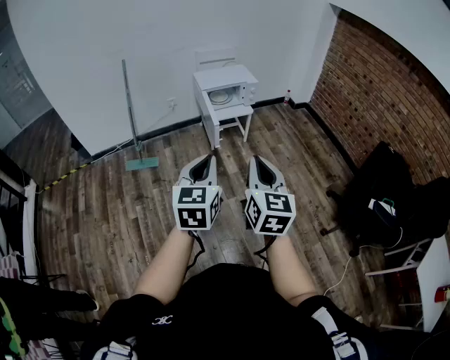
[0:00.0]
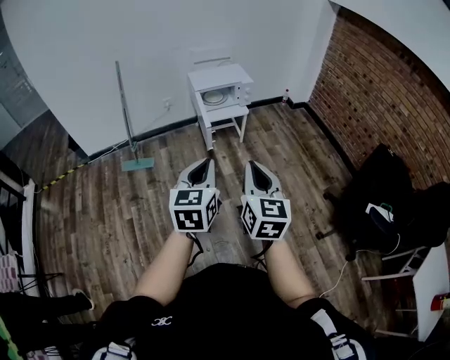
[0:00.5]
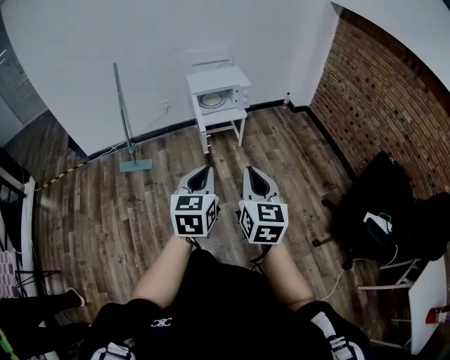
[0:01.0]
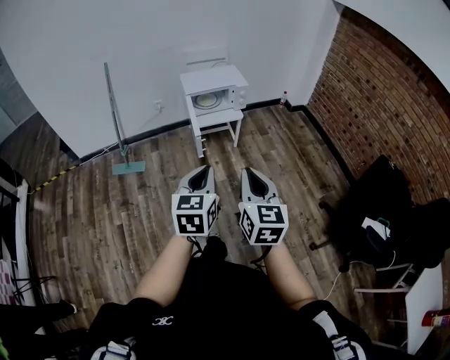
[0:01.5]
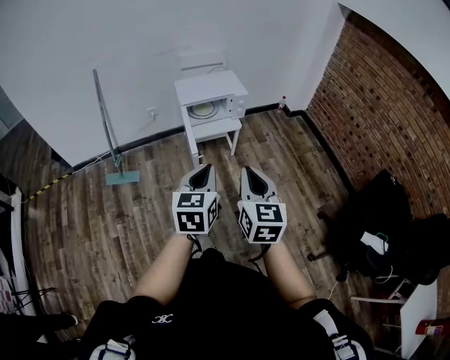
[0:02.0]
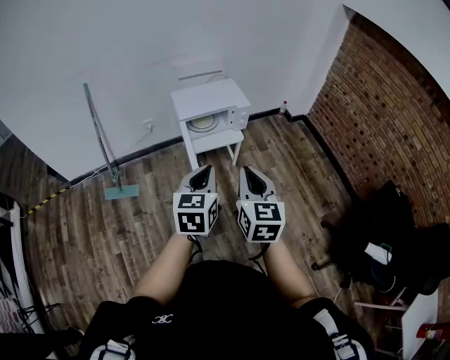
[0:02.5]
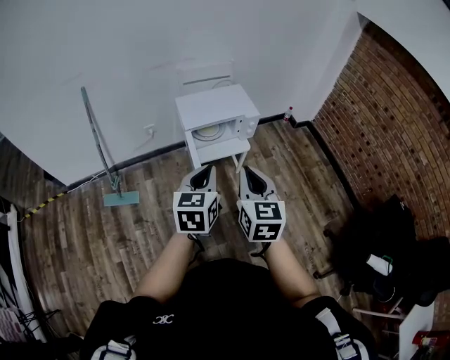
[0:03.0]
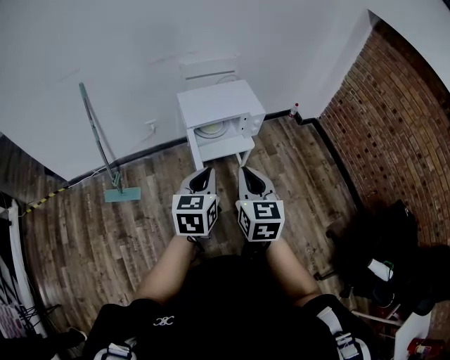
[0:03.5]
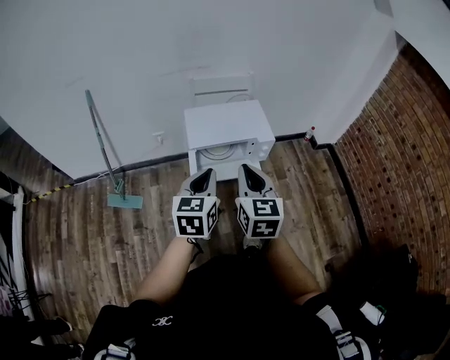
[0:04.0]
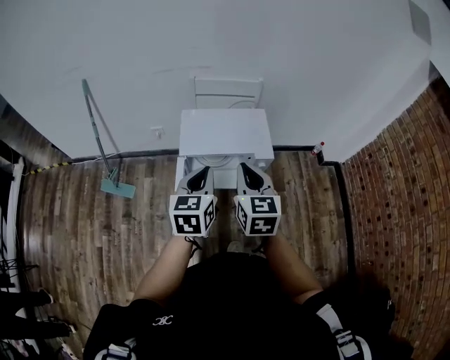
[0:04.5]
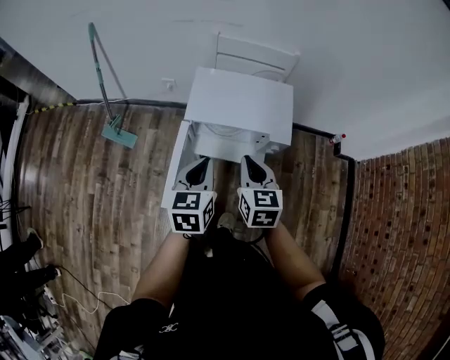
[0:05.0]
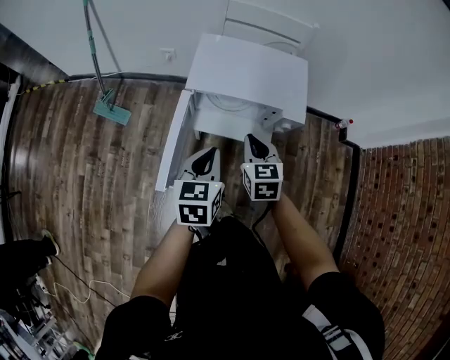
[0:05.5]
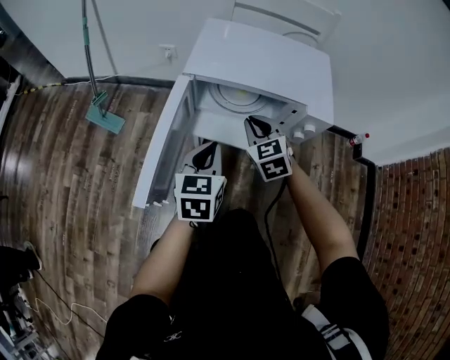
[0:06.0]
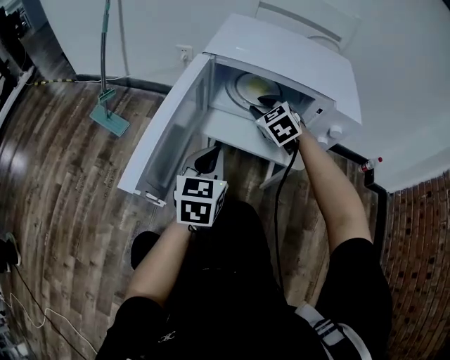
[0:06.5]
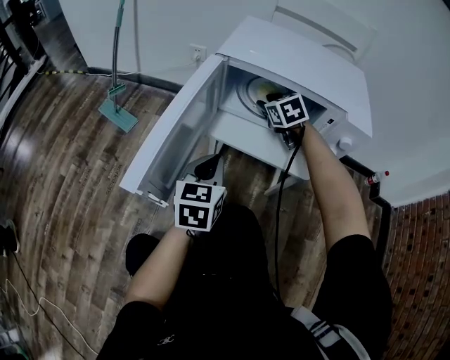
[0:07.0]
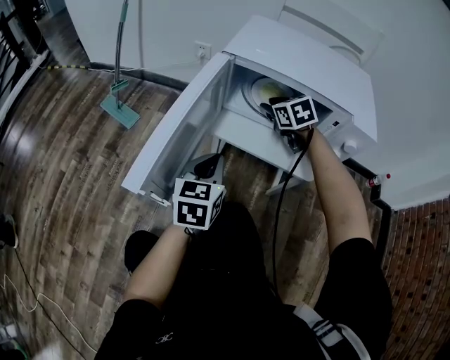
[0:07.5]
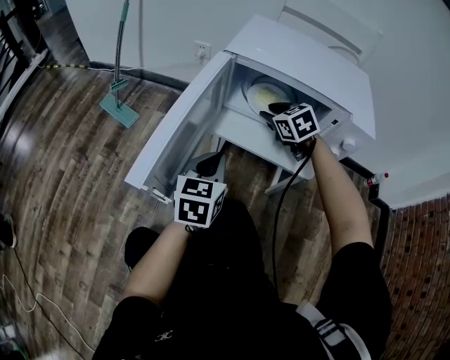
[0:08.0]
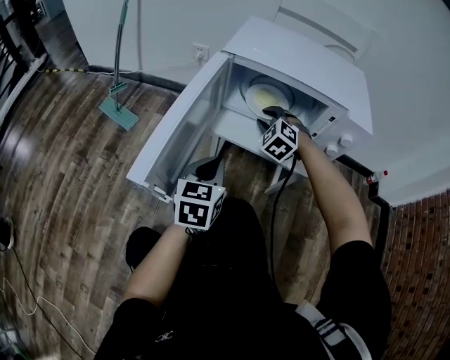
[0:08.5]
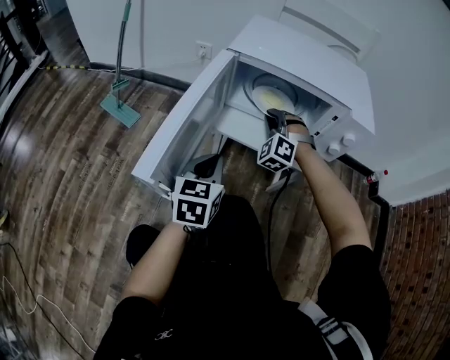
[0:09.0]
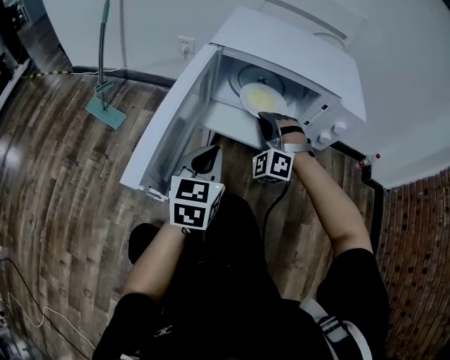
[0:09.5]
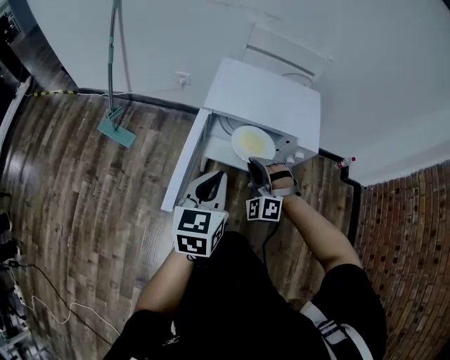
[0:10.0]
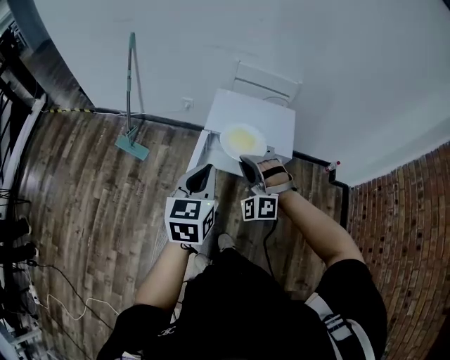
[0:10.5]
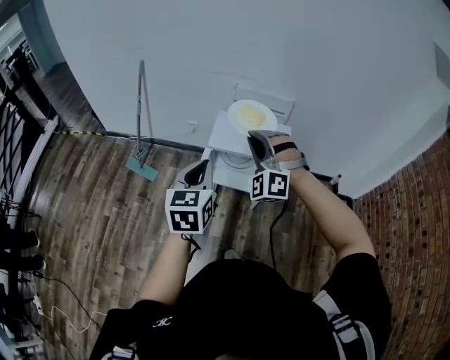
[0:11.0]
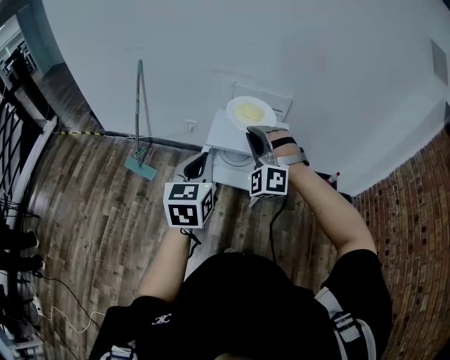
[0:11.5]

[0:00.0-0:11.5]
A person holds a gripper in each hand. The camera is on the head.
0:00.0 to 0:02.0: The grippers both shift forward by some 25 cm.
0:02.0 to 0:04.0: Both grippers travel together forward, some 35 cm.
0:04.0 to 0:06.0: Both grippers move downward, about 40 cm. The right gripper swivels some 50 degrees; the left gripper changes its angle by about 20 degrees.
0:06.0 to 0:07.5: The right gripper heads forward and downward, covering about 15 cm, and opens its fingers, while the left gripper is displaced downward by some 10 cm.
0:07.5 to 0:09.5: The right gripper shifts approximately 10 cm backward, rotates around the line of its fingers by roughly 60 degrees, counterclockwise from behind, and closes its fingers.
0:09.5 to 0:11.5: Both grippers move upward, some 50 cm.

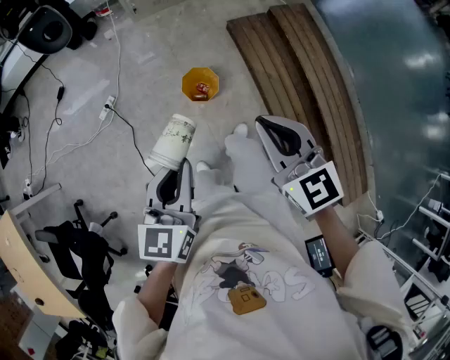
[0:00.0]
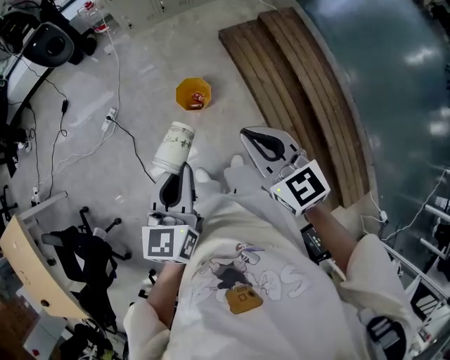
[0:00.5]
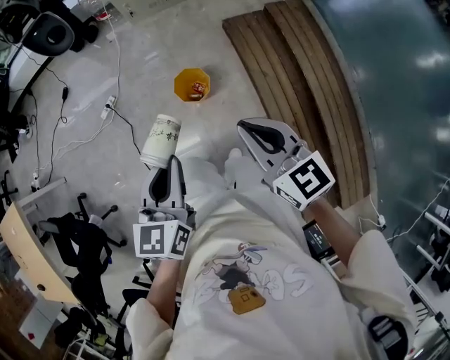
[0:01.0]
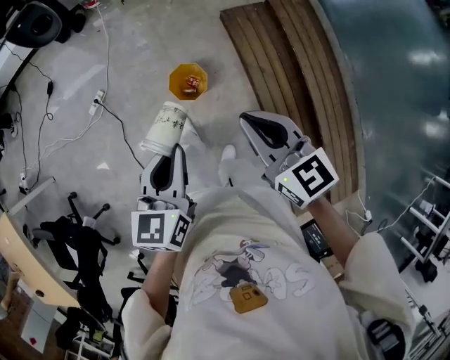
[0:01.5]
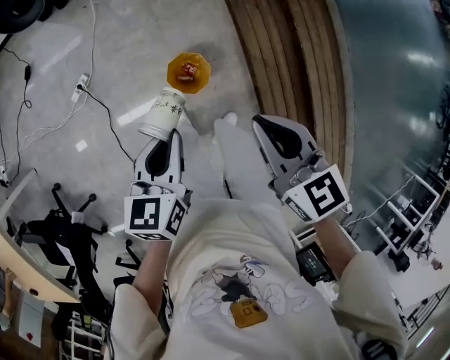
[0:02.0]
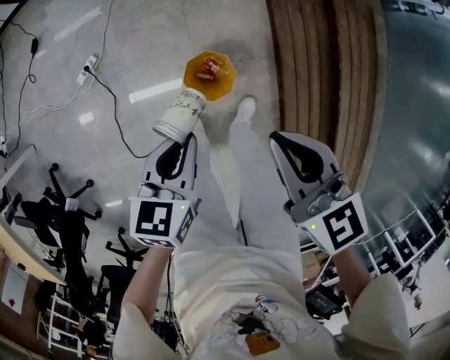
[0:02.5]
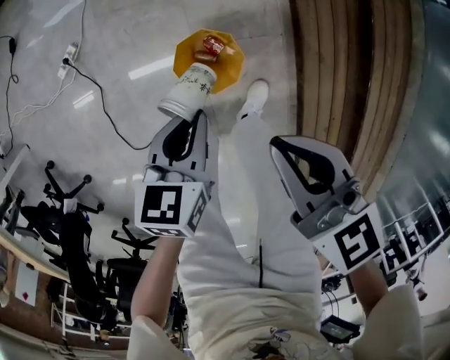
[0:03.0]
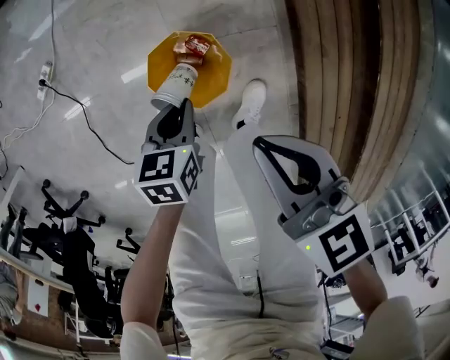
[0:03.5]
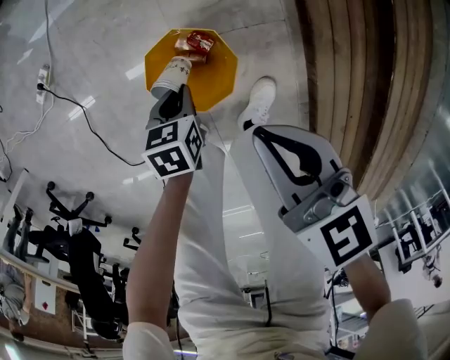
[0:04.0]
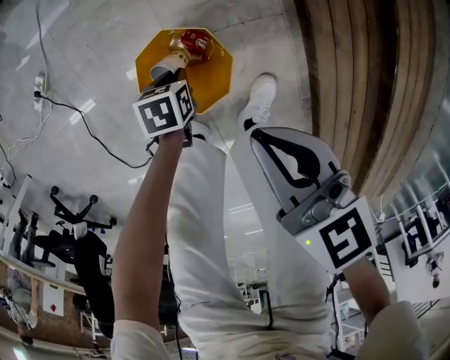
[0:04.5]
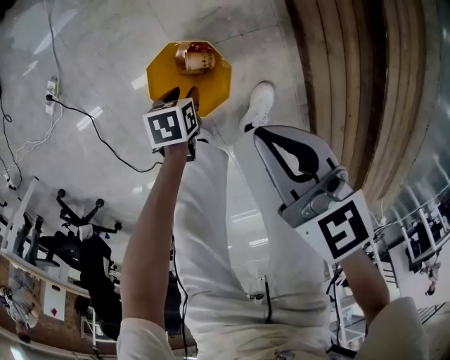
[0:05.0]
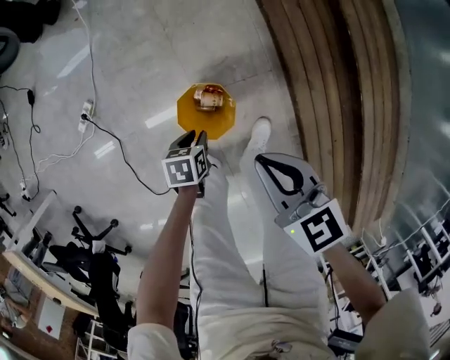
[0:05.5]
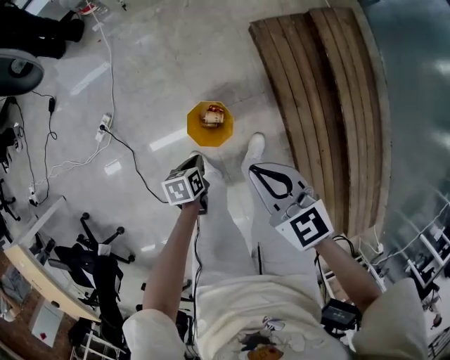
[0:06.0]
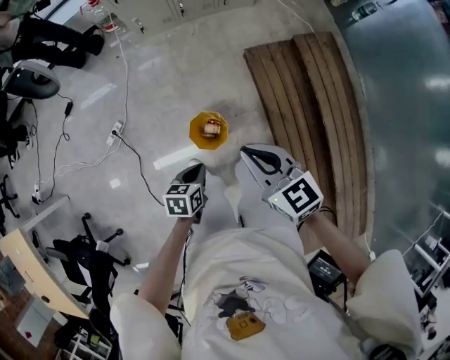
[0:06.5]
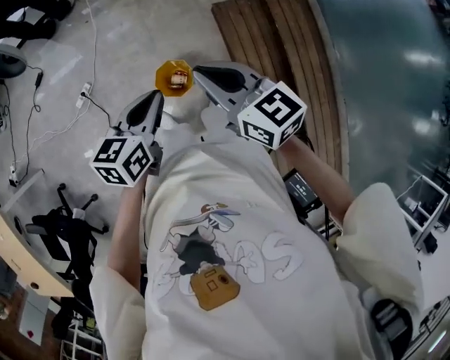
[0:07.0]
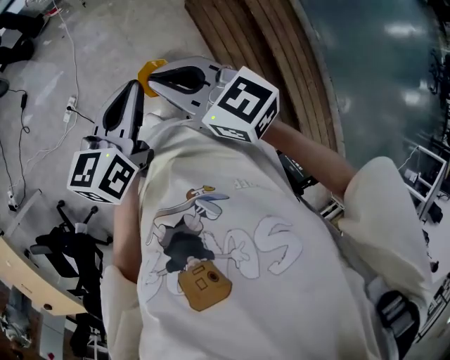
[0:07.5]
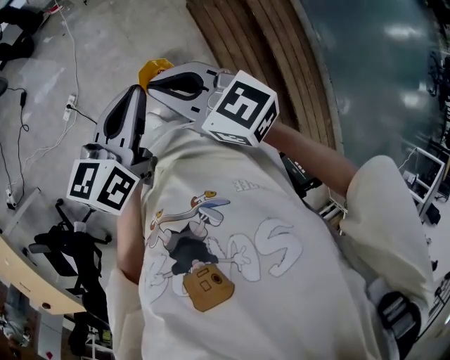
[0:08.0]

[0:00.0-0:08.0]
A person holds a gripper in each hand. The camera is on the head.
0:00.0 to 0:02.0: Both grippers move forward and downward, some 25 cm. The left gripper swivels approximately 20 degrees.
0:02.0 to 0:04.0: Both grippers move downward, approximately 60 cm. The left gripper points its fingers about 30 degrees further downward.
0:04.0 to 0:06.0: The grippers both shift upward by approximately 30 cm. The left gripper opens and closes again.
0:06.0 to 0:08.0: The left gripper moves upward, about 50 cm, and angles its fingers upward, by approximately 50 degrees; the right gripper goes some 25 cm upward, and turns by some 20 degrees.

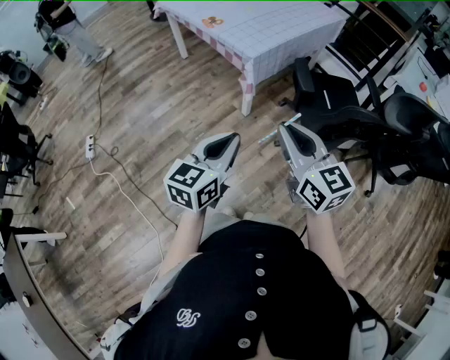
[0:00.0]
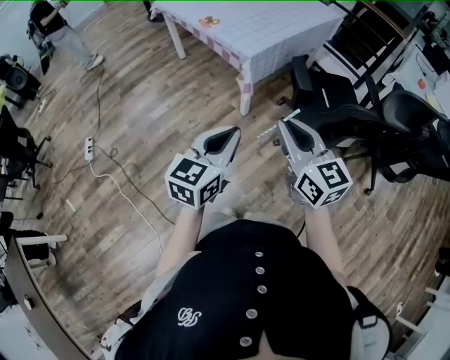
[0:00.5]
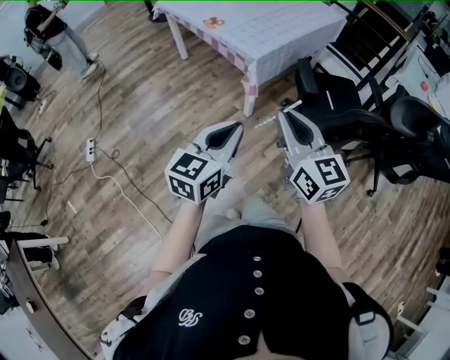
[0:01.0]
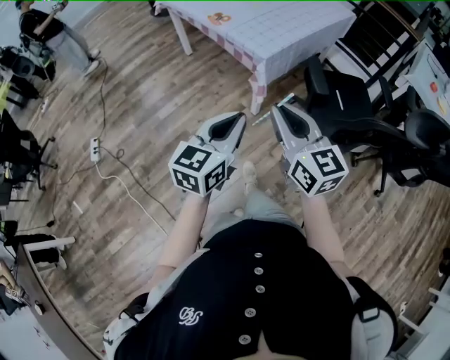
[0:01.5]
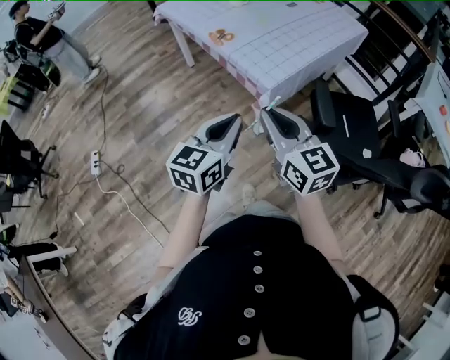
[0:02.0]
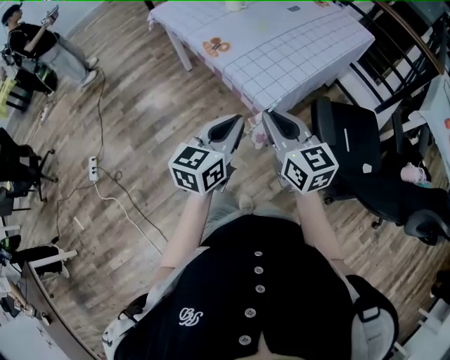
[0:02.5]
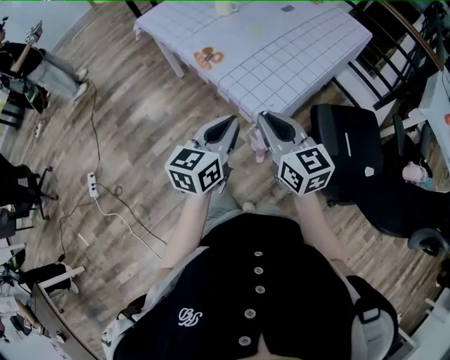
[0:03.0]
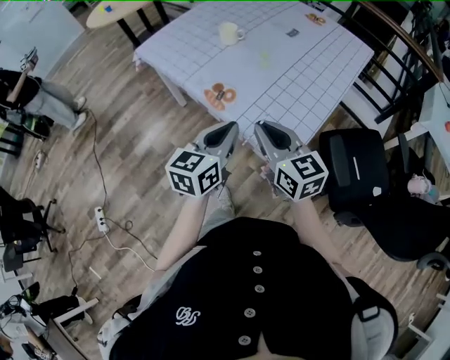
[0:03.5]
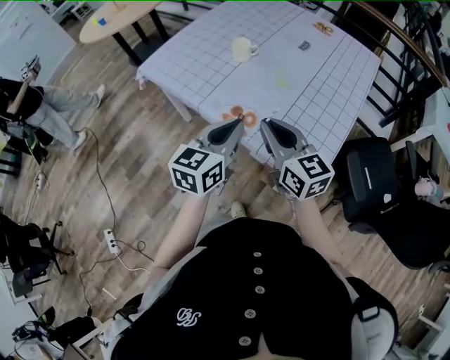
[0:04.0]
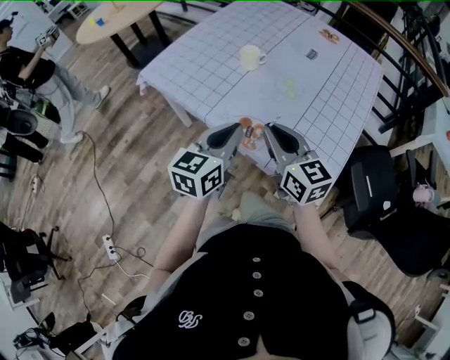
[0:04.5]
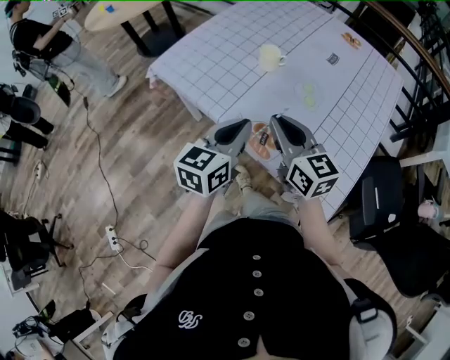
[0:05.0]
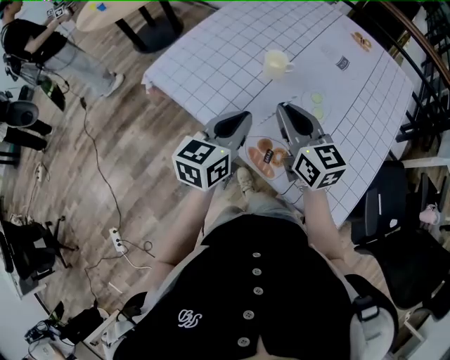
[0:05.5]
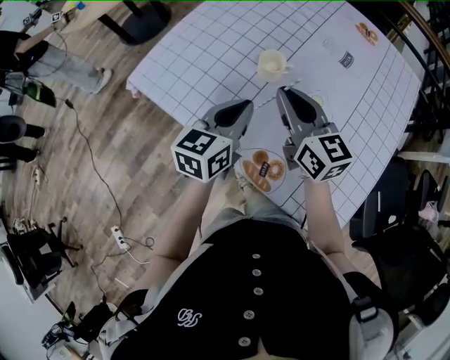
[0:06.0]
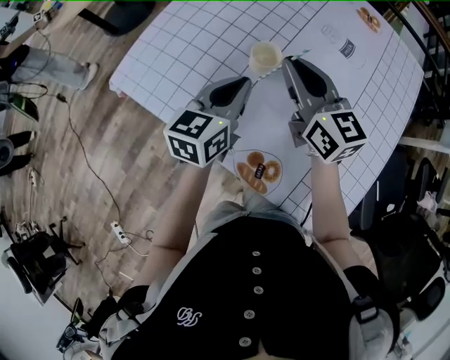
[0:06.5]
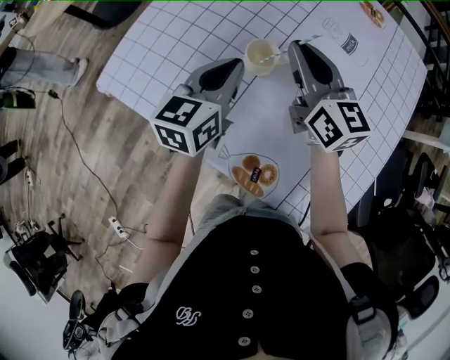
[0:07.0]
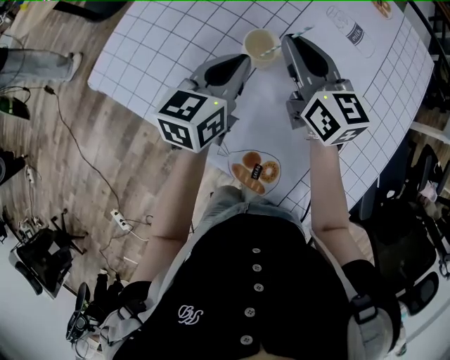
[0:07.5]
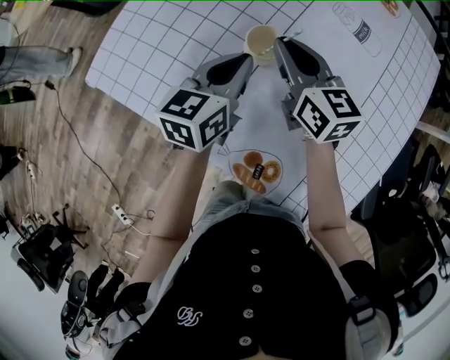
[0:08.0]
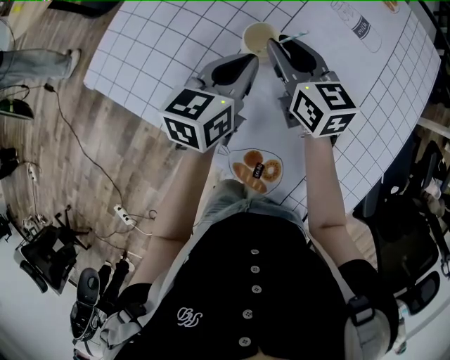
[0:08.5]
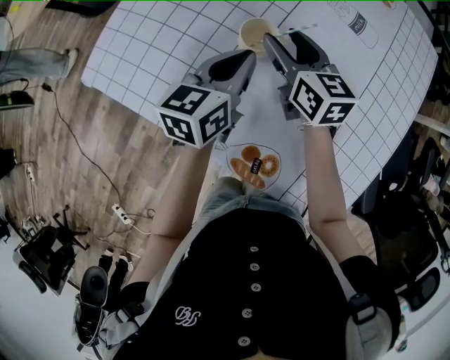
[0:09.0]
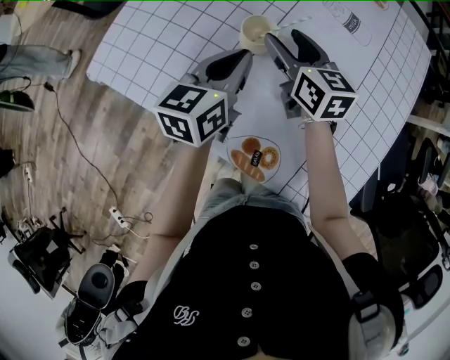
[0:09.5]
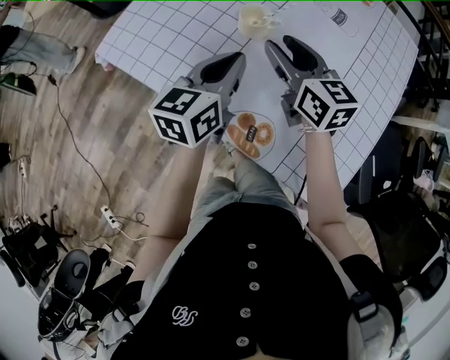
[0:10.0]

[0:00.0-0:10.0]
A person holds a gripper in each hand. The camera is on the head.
0:00.0 to 0:02.0: The two grippers go approximately 25 cm forward.
0:02.0 to 0:04.0: Both grippers are carried forward, approximately 40 cm.
0:04.0 to 0:06.0: Both grippers travel together forward, approximately 30 cm.
0:06.0 to 0:08.0: The two grippers go some 15 cm forward and downward.
0:08.0 to 0:10.0: The left gripper is displaced backward and upward by about 15 cm. The right gripper shifts some 10 cm backward, and opens up.
